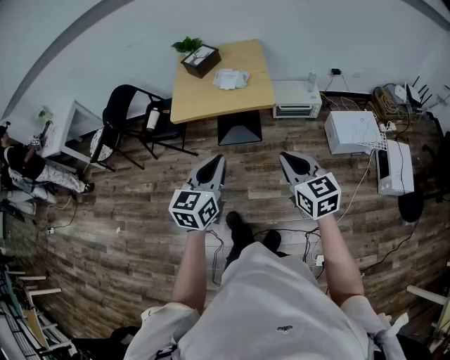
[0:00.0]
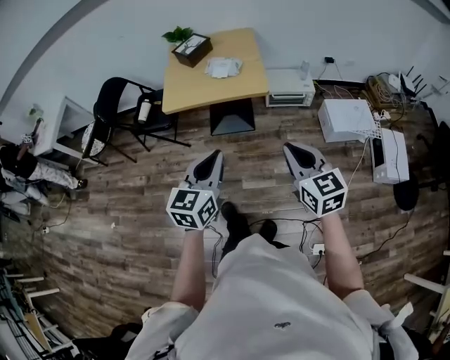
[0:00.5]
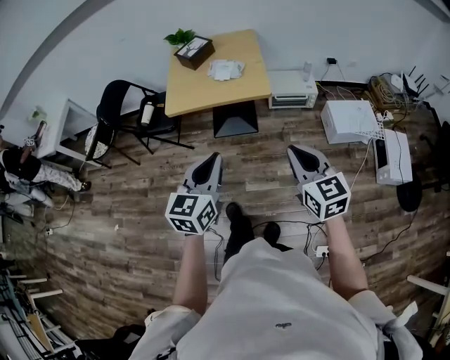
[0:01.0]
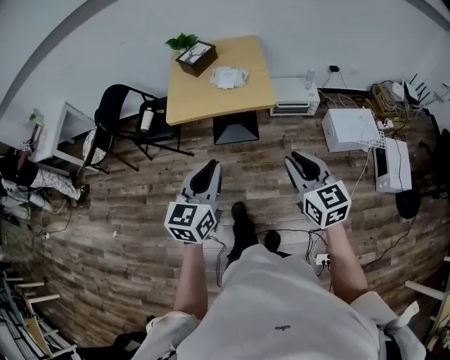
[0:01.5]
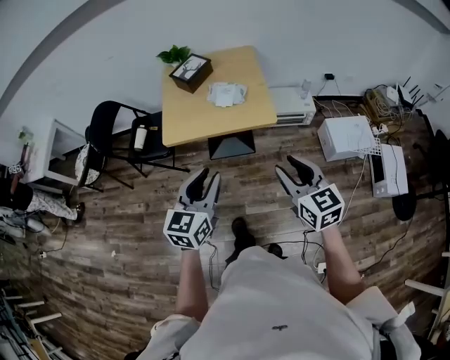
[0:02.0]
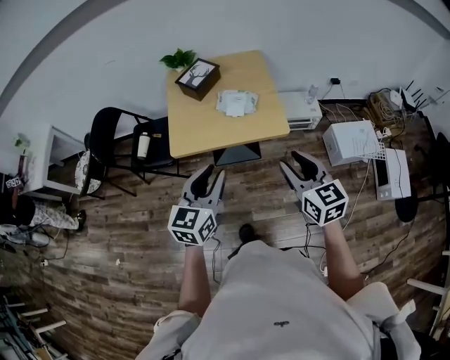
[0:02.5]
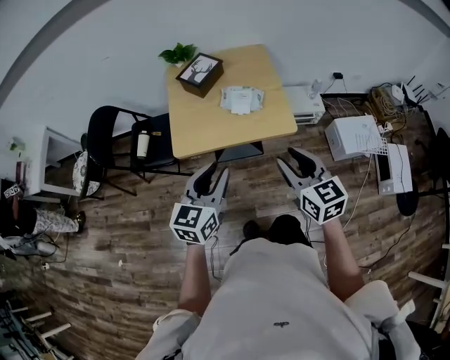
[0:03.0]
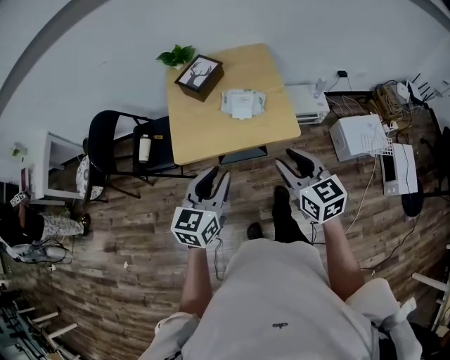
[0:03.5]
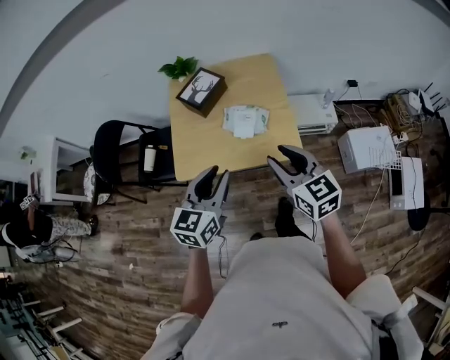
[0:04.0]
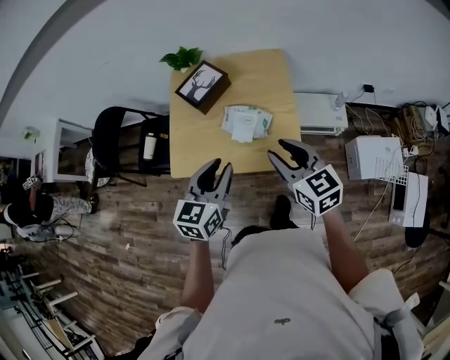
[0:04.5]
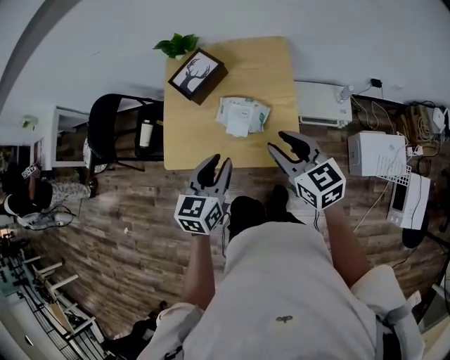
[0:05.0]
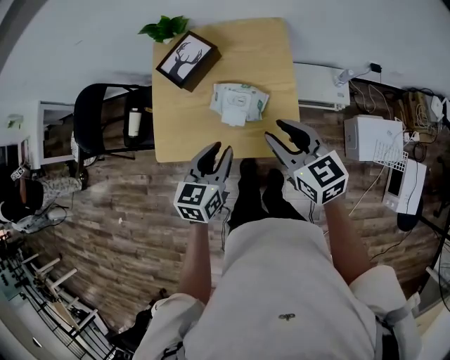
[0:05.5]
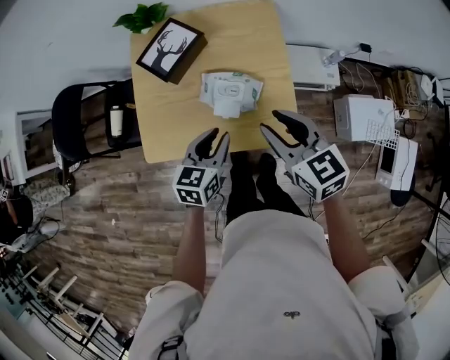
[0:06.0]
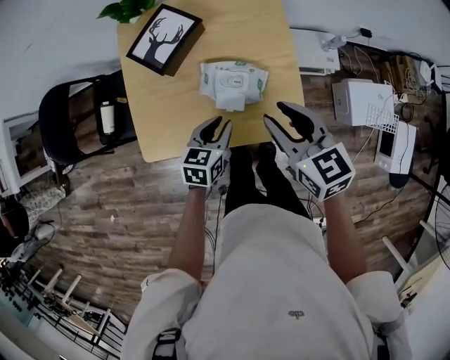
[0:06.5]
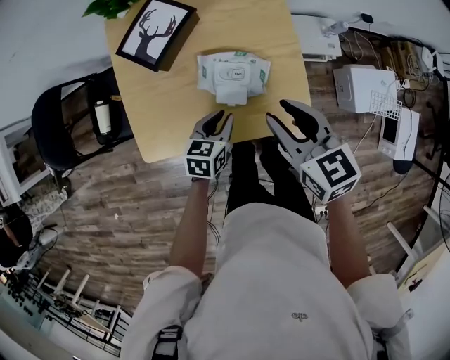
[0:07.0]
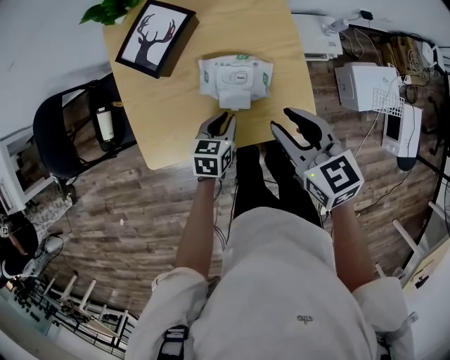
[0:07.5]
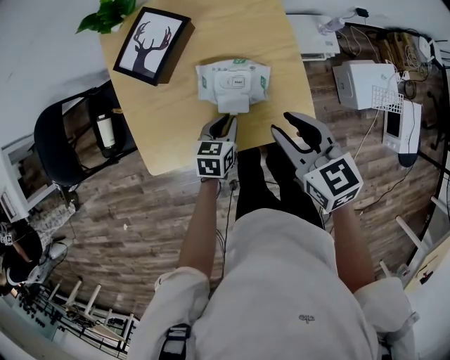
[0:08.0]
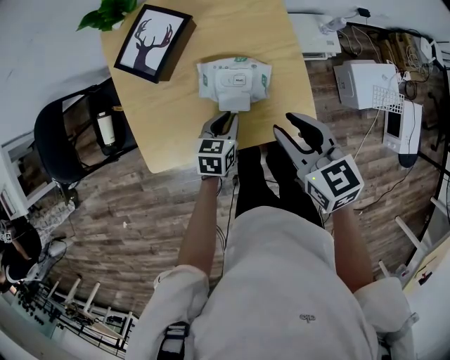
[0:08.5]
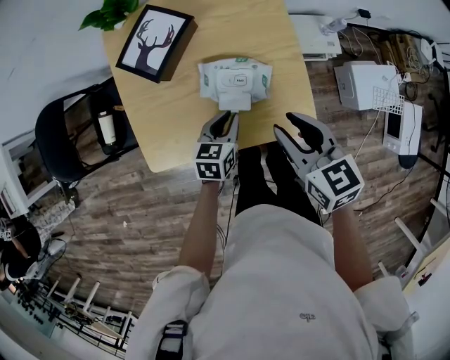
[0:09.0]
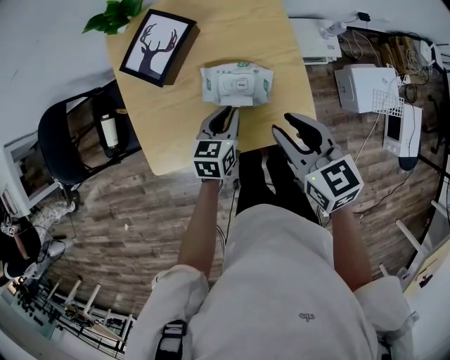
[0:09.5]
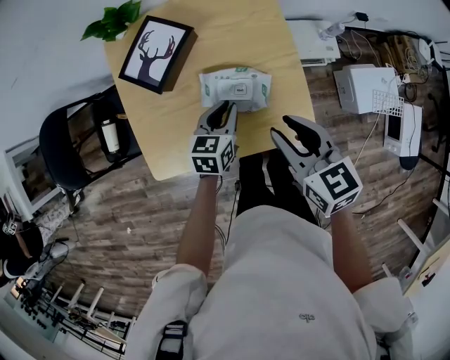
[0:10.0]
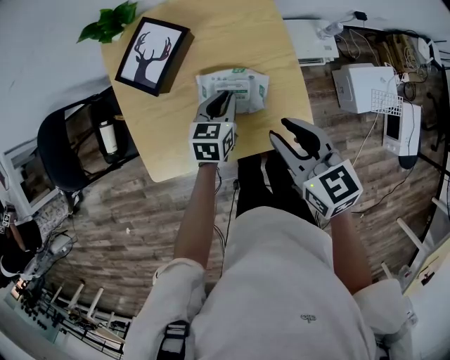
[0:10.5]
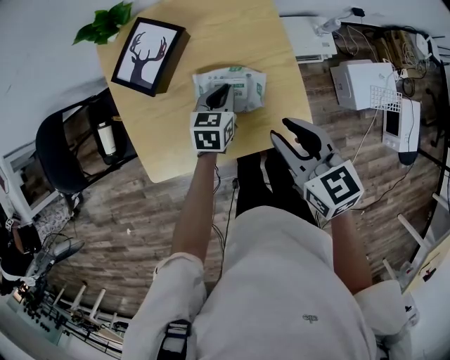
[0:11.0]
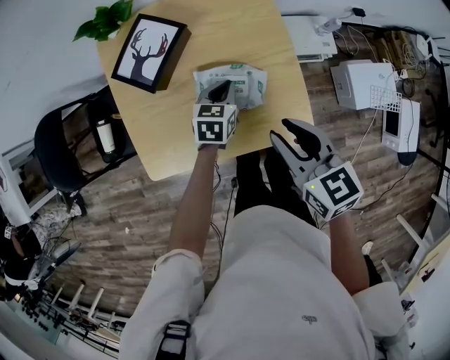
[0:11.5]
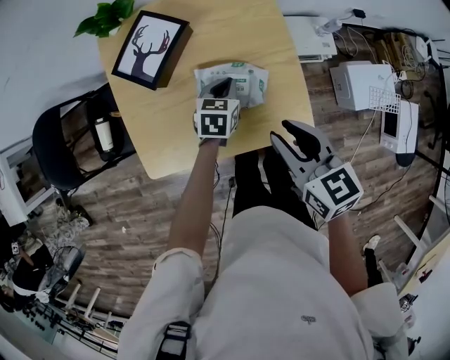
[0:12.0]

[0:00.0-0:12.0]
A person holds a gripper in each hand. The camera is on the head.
0:00.0 to 0:02.0: The left gripper goes some 15 cm forward and to the left, and opens up. Meanwhile the right gripper shifts approximately 15 cm forward, and opens its fingers.
0:02.0 to 0:04.0: The two grippers go roughly 25 cm forward.
0:04.0 to 0:06.0: The right gripper moves forward and downward, approximately 20 cm. The left gripper goes about 25 cm downward and forward.
0:06.0 to 0:08.0: The right gripper is displaced downward by about 5 cm, while the left gripper shifts roughly 15 cm downward.
0:08.0 to 0:10.0: The left gripper travels forward and upward by approximately 10 cm.
0:10.0 to 0:12.0: The left gripper is displaced forward by about 5 cm.

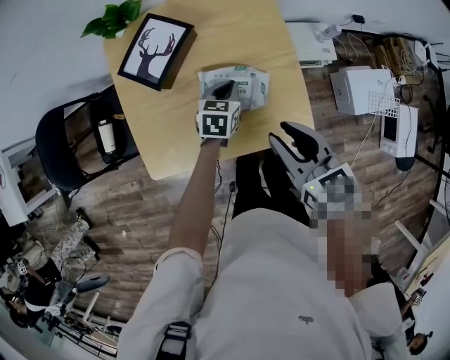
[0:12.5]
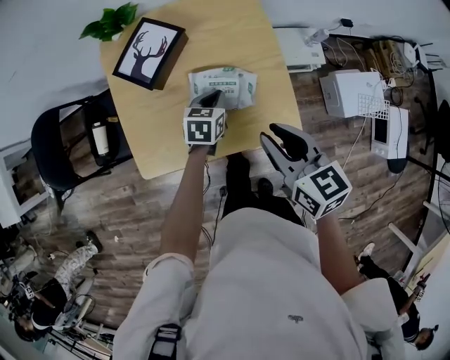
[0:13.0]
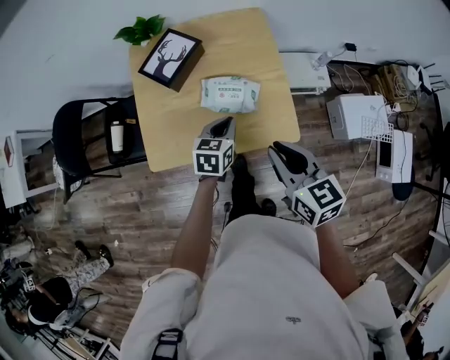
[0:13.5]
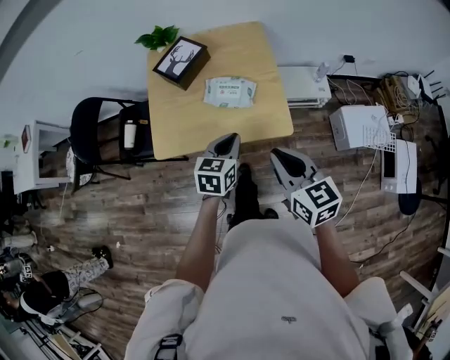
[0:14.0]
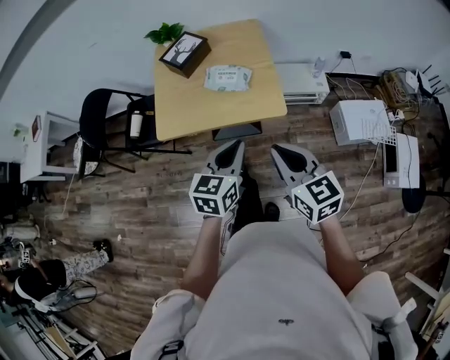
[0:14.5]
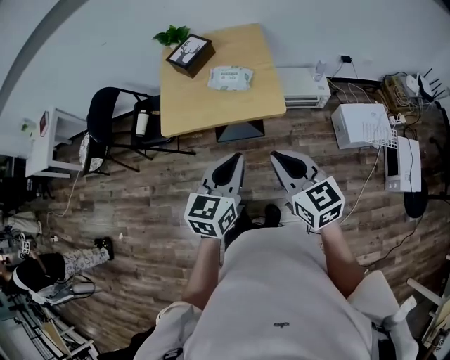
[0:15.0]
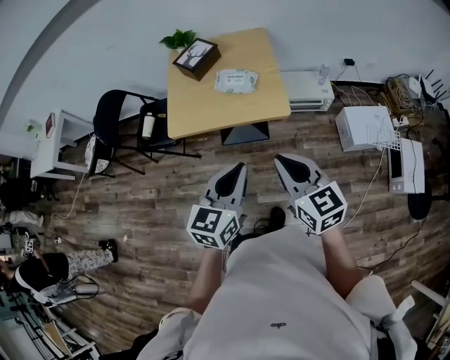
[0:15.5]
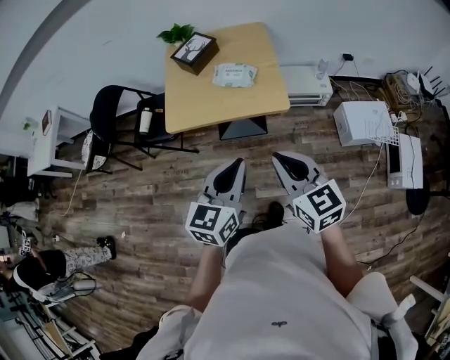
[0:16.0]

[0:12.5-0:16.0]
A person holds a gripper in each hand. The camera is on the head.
0:12.5 to 0:14.5: The right gripper travels backward by about 30 cm, and closes up, while the left gripper heads backward and upward, covering approximately 50 cm, and turns by about 20 degrees.
0:14.5 to 0:16.0: The left gripper heads backward and upward, covering approximately 15 cm. The right gripper shifts about 10 cm backward.

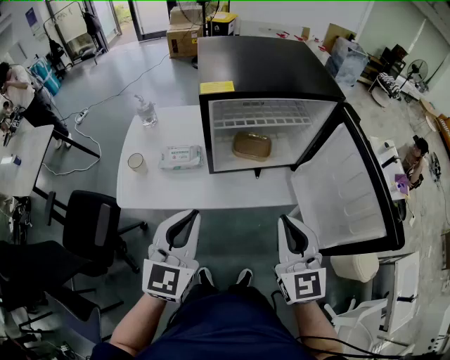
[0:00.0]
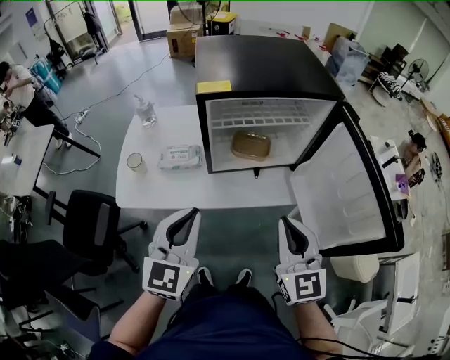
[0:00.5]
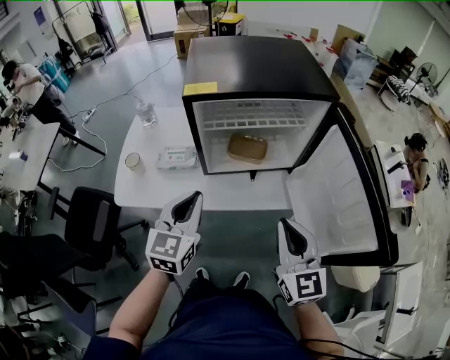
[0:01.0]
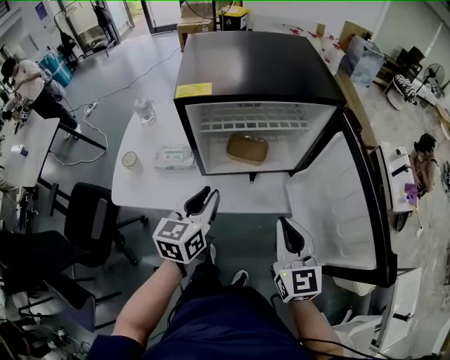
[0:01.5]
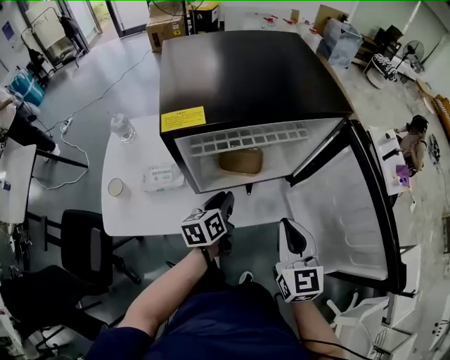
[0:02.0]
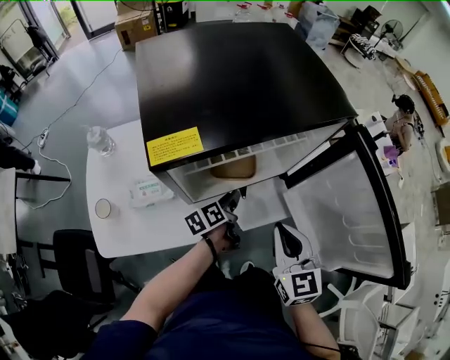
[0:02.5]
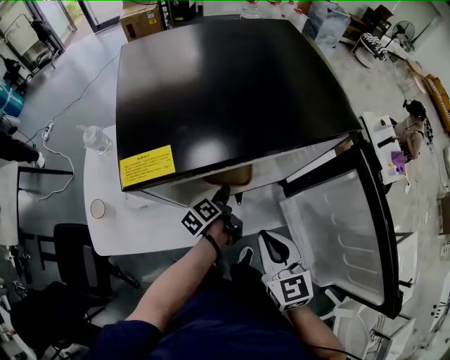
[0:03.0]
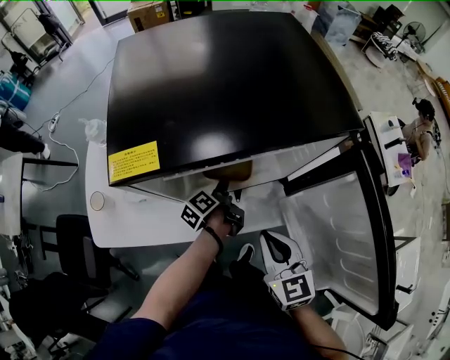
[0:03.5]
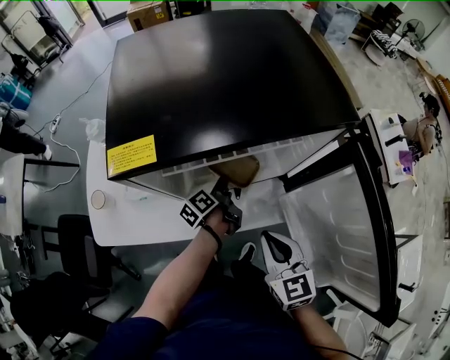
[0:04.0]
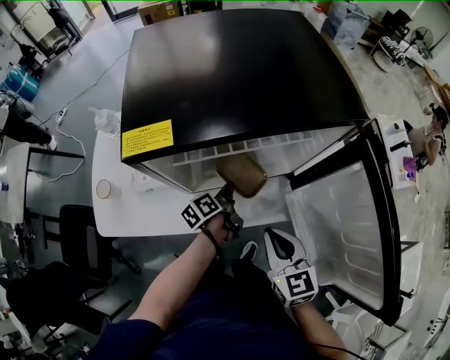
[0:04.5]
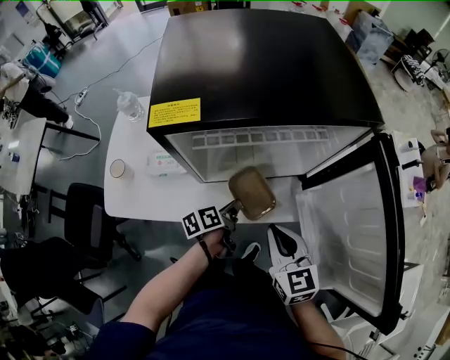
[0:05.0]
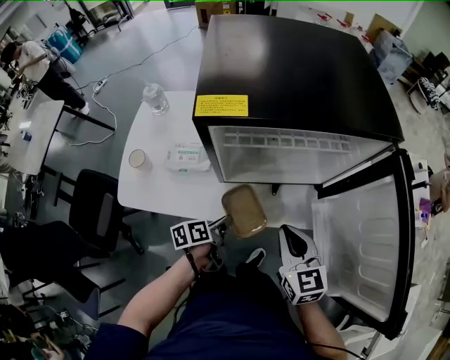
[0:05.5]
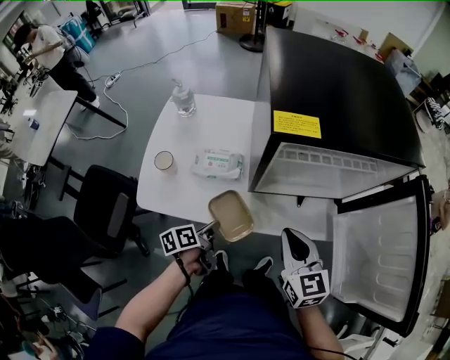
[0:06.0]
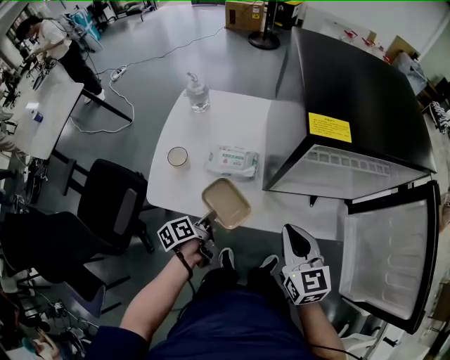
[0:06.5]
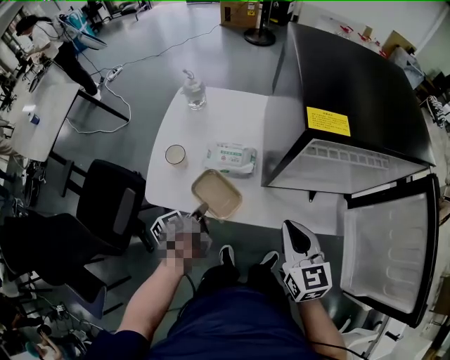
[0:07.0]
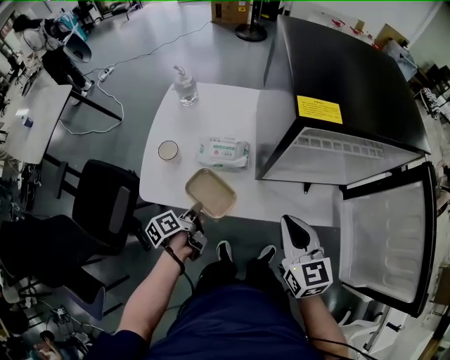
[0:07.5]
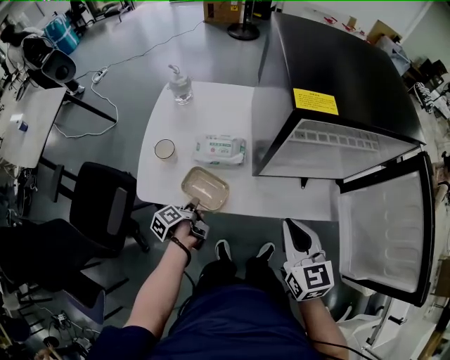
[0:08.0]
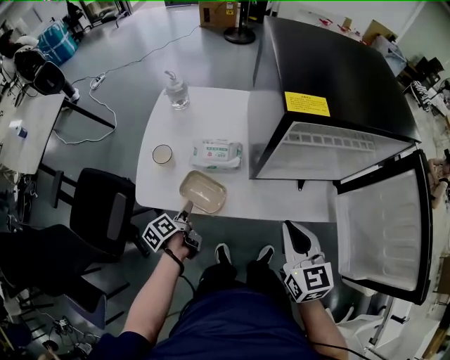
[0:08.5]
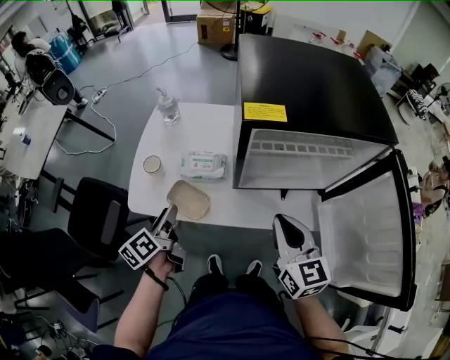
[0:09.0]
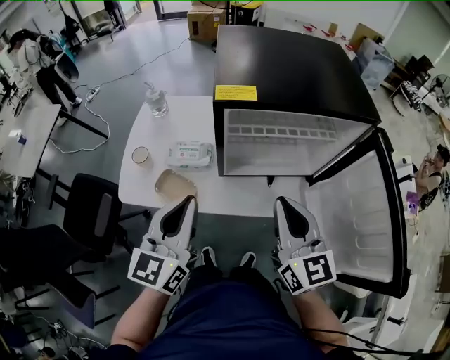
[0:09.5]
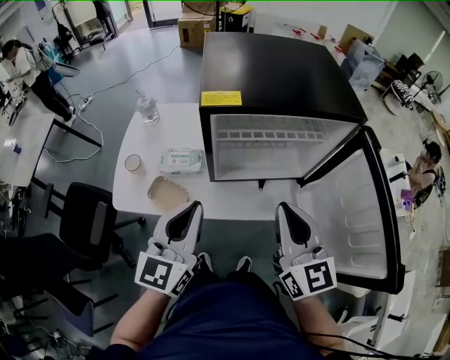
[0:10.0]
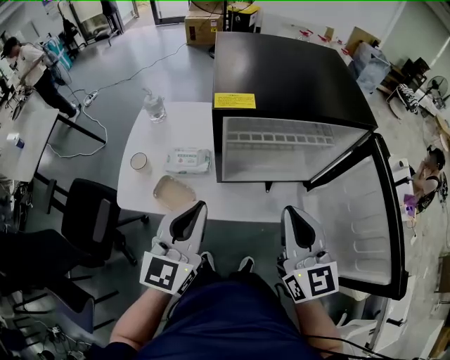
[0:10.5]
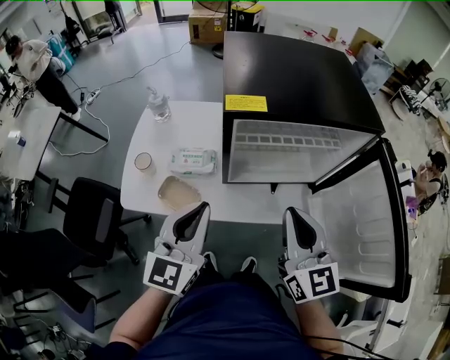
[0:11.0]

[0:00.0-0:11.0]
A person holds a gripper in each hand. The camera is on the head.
0:00.0 to 0:02.0: The right gripper is displaced forward and downward by about 15 cm; the left gripper is displaced forward, downward and to the right by about 30 cm, and twists about 50 degrees counterclockwise, seen from behind.
0:02.0 to 0:03.5: The left gripper goes some 15 cm downward and forward, and rotates around the line of its fingers by about 40 degrees, counterclockwise from behind. The right gripper is displaced downward by about 5 cm.
0:03.5 to 0:05.5: The left gripper is displaced backward and to the left by about 20 cm.
0:05.5 to 0:07.5: The right gripper moves to the left, approximately 15 cm. Meanwhile the left gripper travels to the left by about 25 cm, and swivels about 20 degrees.
0:07.5 to 0:09.0: The left gripper shifts some 15 cm upward, changes its angle by some 20 degrees, and opens up, while the right gripper shifts roughly 10 cm upward and to the right.
0:09.0 to 0:11.0: The left gripper is displaced upward and to the right by roughly 25 cm, twists approximately 60 degrees clockwise, seen from behind, and closes. Meanwhile the right gripper goes approximately 5 cm upward.
